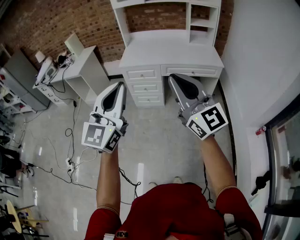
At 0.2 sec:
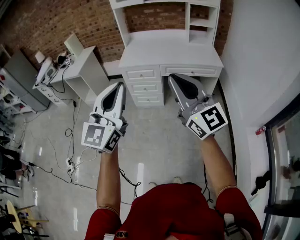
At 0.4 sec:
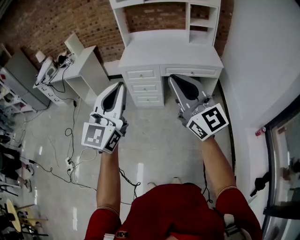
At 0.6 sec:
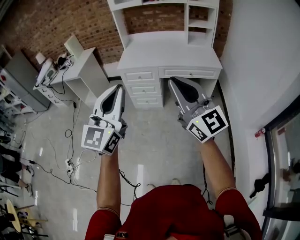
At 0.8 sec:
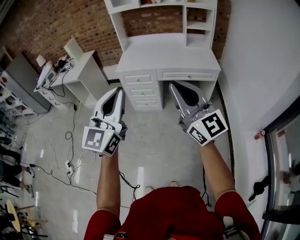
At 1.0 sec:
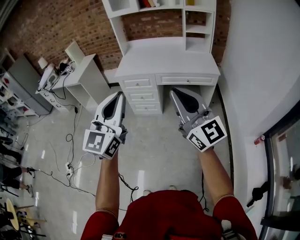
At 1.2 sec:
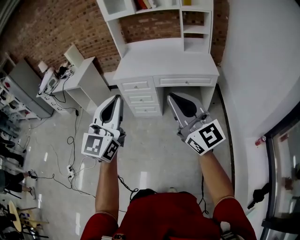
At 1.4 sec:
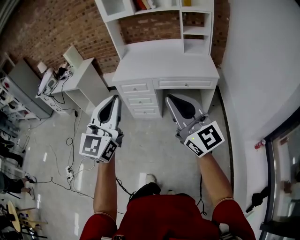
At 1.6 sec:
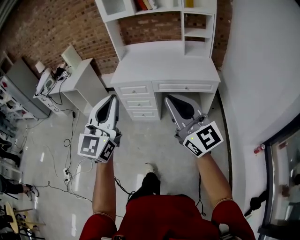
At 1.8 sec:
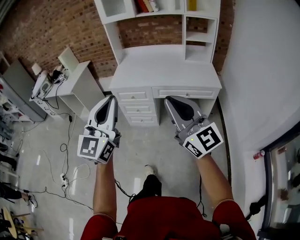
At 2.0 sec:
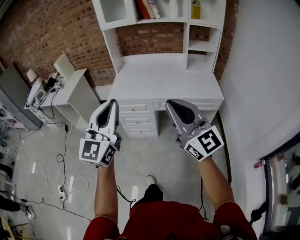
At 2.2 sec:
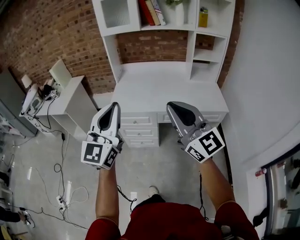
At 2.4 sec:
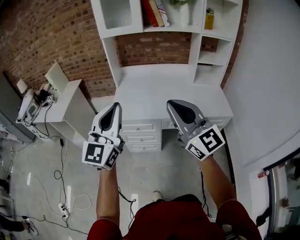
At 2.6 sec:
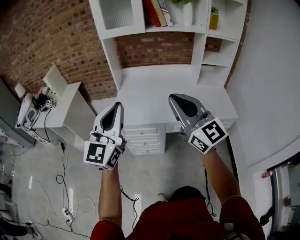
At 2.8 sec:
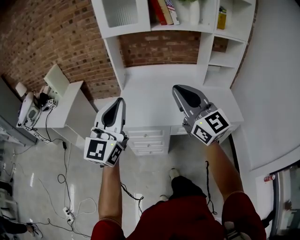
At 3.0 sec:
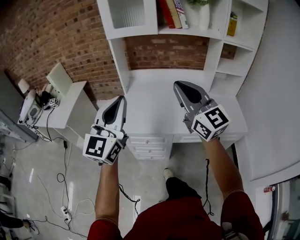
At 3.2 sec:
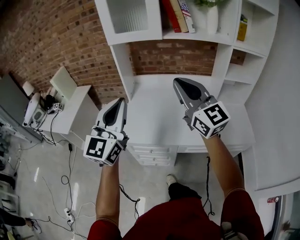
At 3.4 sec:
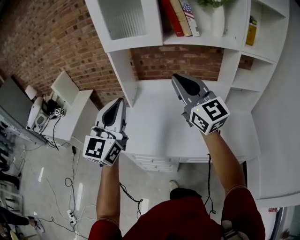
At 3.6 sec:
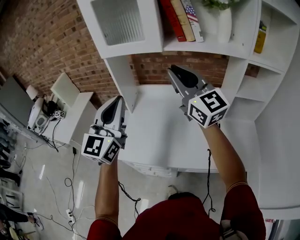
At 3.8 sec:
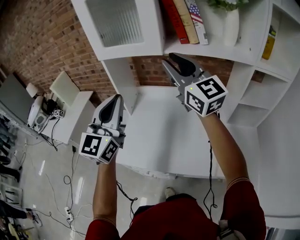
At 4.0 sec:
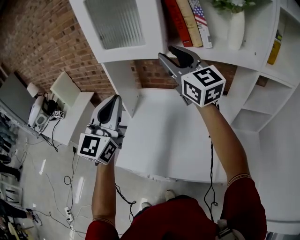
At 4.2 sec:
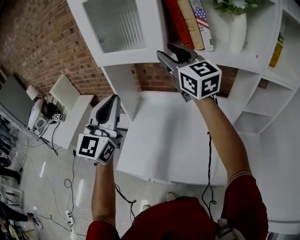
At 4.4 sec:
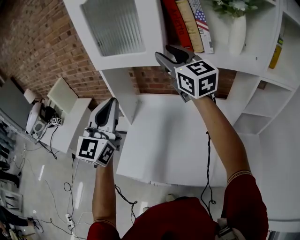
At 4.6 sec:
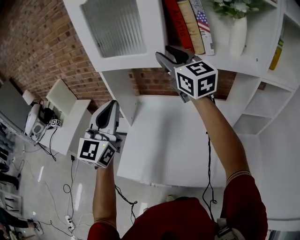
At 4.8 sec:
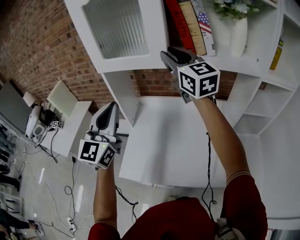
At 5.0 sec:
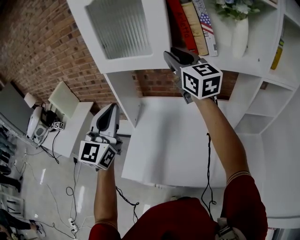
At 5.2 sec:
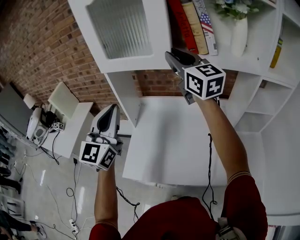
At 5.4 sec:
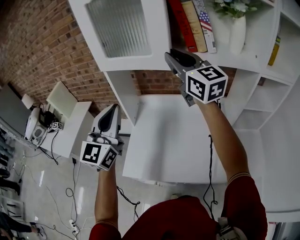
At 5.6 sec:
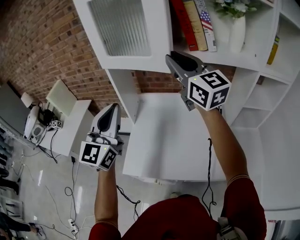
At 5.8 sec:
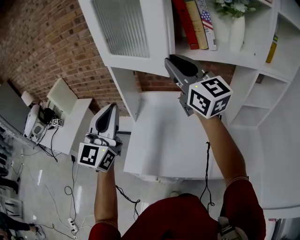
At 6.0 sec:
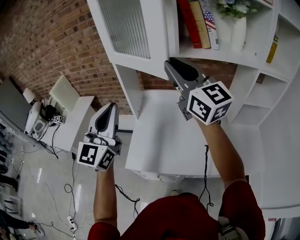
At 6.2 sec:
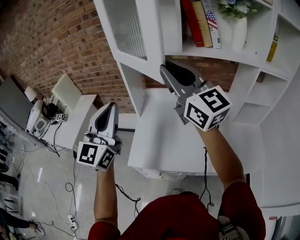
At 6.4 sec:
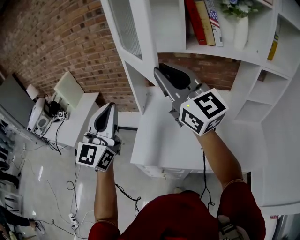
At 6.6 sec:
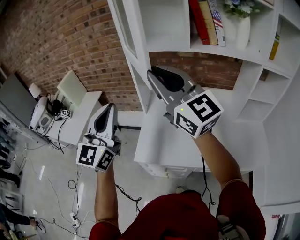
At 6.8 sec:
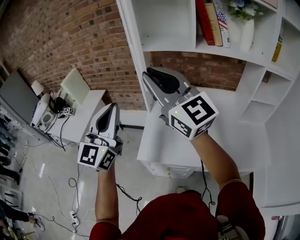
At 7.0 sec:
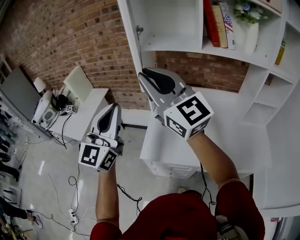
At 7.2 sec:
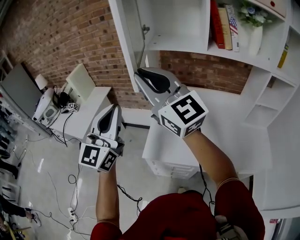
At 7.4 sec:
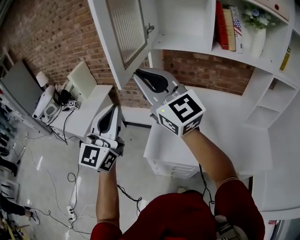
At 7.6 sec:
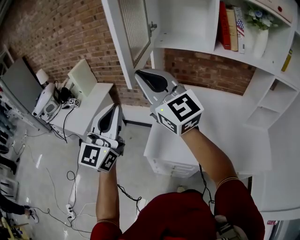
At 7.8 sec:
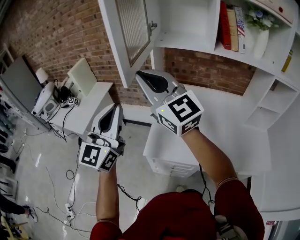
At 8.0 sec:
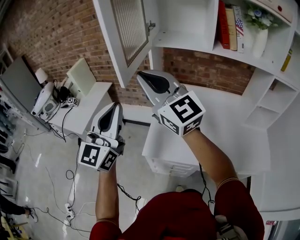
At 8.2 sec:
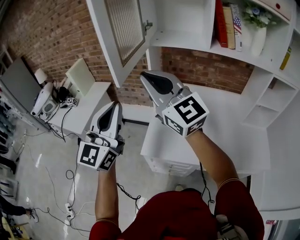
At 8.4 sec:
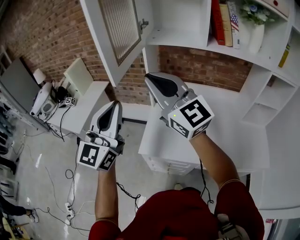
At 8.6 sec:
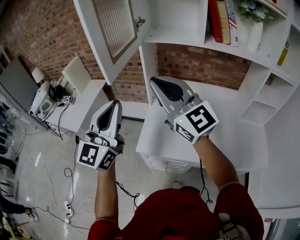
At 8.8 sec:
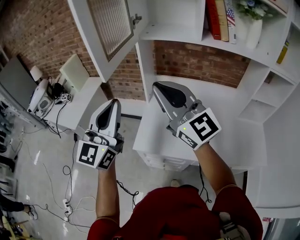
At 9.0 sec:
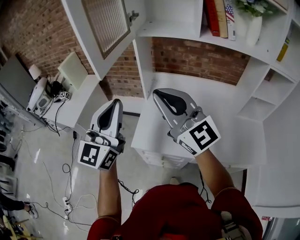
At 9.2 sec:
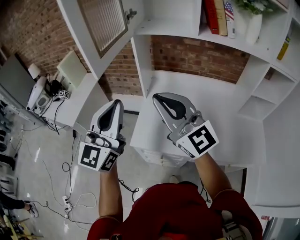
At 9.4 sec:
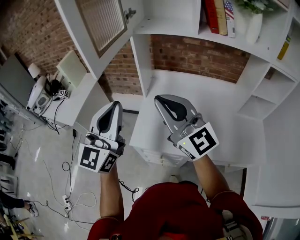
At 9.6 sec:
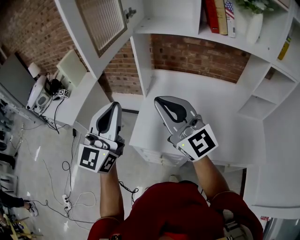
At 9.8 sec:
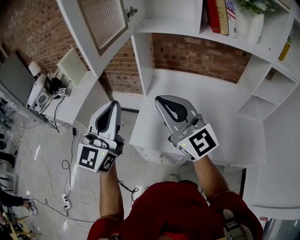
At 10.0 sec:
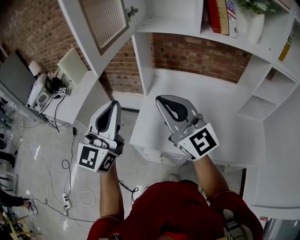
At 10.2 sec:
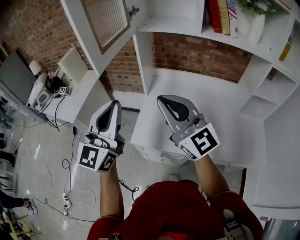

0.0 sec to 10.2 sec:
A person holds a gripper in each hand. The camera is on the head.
0.0 sec to 1.4 sec: Both grippers travel together to the right, approximately 10 cm.
1.4 sec to 3.0 sec: The pair of grippers is taken forward, some 60 cm.
3.0 sec to 4.4 sec: The two grippers go some 35 cm forward. The right gripper opens up.
4.4 sec to 5.8 sec: The left gripper moves to the left, roughly 5 cm; the right gripper travels backward by roughly 10 cm, and closes up.
5.8 sec to 7.2 sec: The right gripper travels to the left and backward by about 25 cm. Meanwhile the left gripper shifts roughly 15 cm to the left and backward.
7.2 sec to 8.8 sec: The right gripper is displaced downward and to the right by roughly 10 cm.
8.8 sec to 10.2 sec: The right gripper heads downward, covering some 5 cm.

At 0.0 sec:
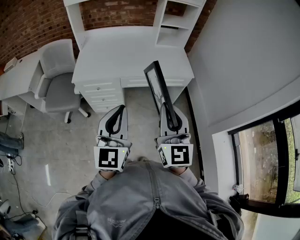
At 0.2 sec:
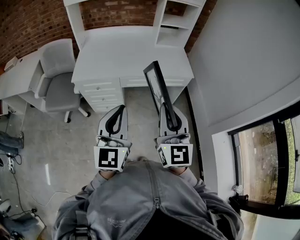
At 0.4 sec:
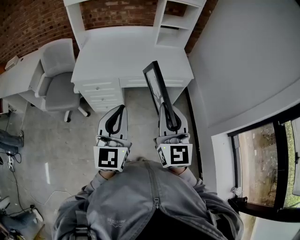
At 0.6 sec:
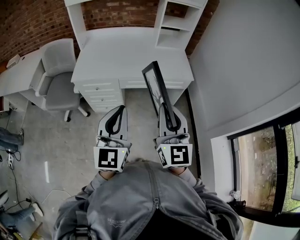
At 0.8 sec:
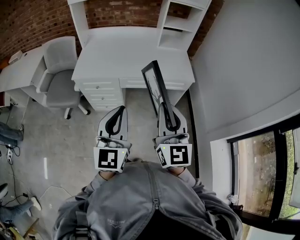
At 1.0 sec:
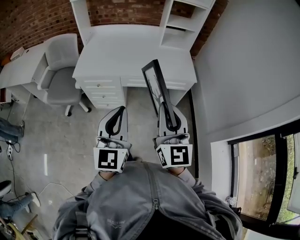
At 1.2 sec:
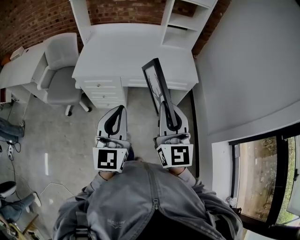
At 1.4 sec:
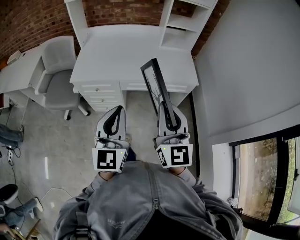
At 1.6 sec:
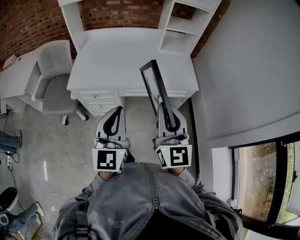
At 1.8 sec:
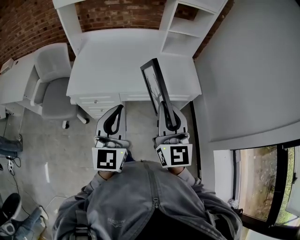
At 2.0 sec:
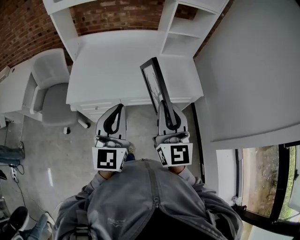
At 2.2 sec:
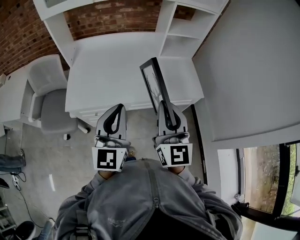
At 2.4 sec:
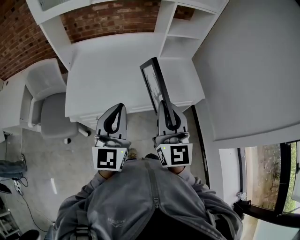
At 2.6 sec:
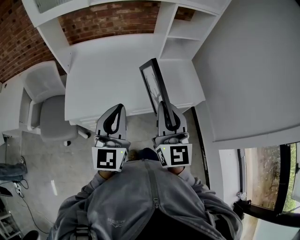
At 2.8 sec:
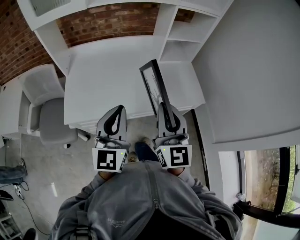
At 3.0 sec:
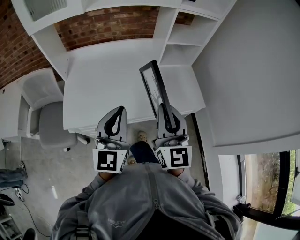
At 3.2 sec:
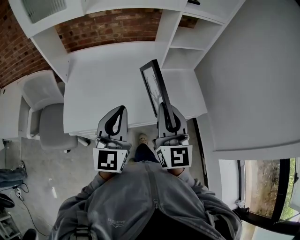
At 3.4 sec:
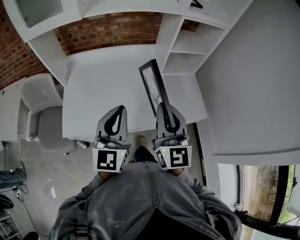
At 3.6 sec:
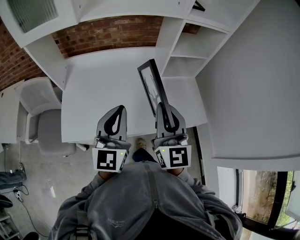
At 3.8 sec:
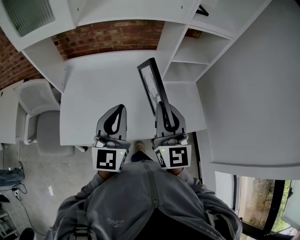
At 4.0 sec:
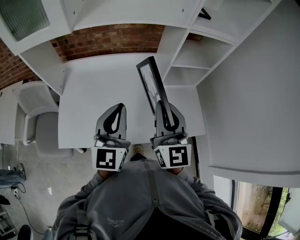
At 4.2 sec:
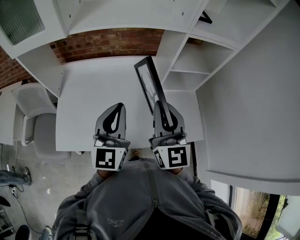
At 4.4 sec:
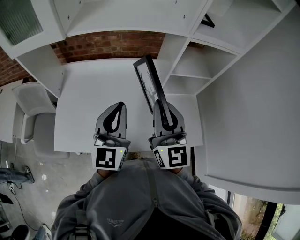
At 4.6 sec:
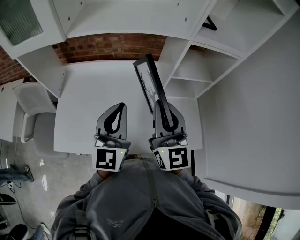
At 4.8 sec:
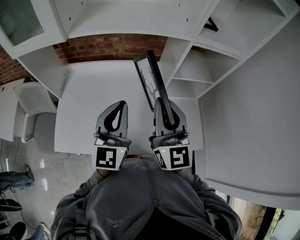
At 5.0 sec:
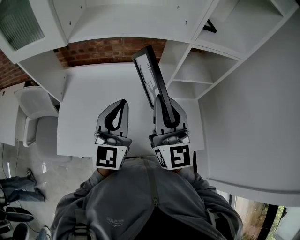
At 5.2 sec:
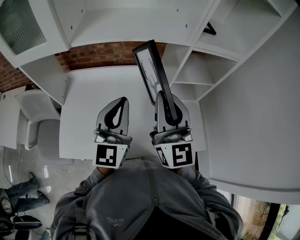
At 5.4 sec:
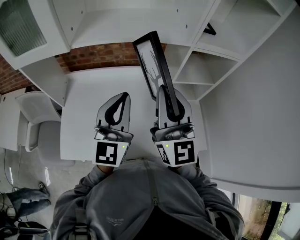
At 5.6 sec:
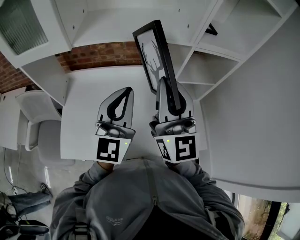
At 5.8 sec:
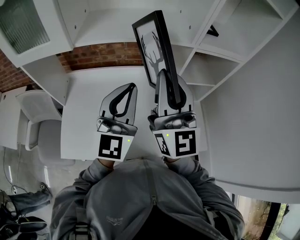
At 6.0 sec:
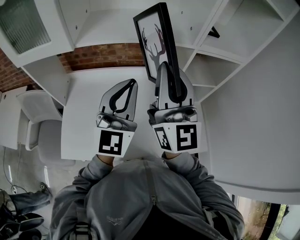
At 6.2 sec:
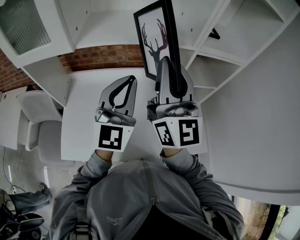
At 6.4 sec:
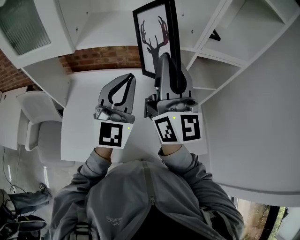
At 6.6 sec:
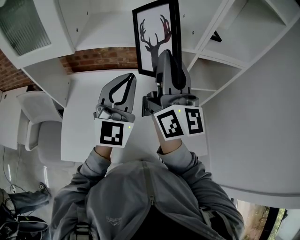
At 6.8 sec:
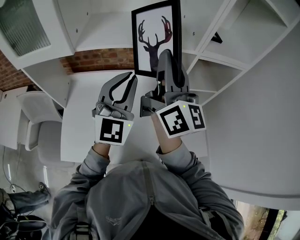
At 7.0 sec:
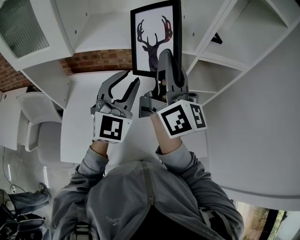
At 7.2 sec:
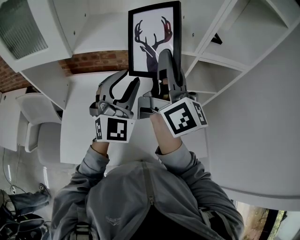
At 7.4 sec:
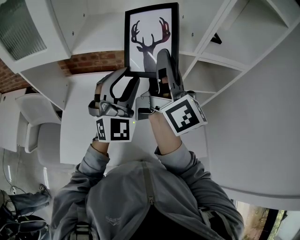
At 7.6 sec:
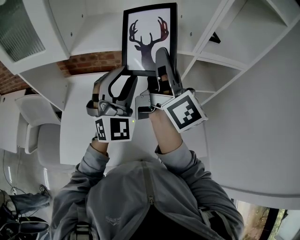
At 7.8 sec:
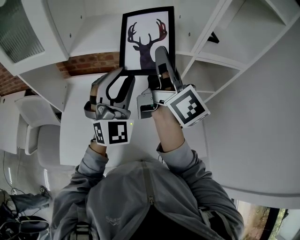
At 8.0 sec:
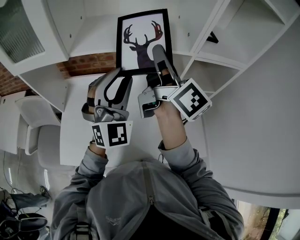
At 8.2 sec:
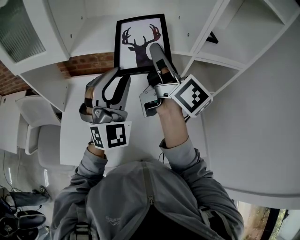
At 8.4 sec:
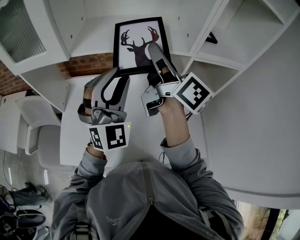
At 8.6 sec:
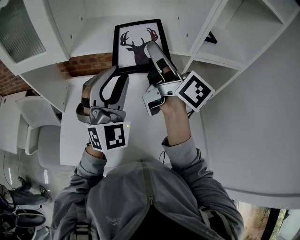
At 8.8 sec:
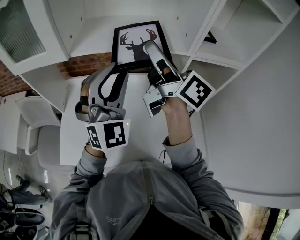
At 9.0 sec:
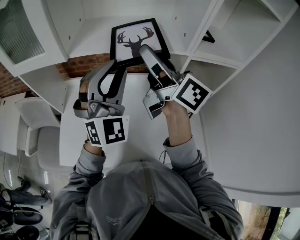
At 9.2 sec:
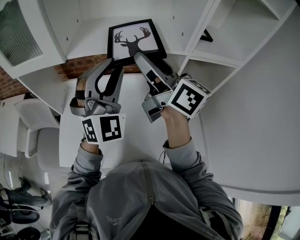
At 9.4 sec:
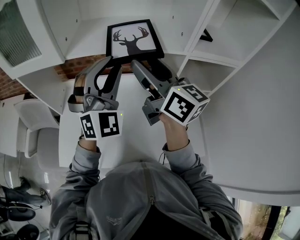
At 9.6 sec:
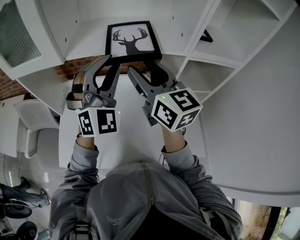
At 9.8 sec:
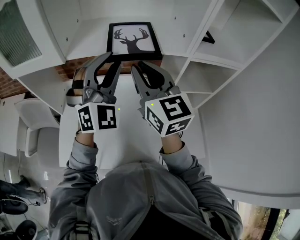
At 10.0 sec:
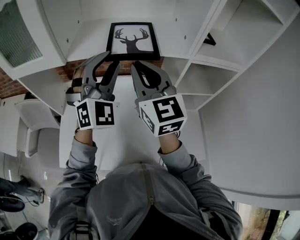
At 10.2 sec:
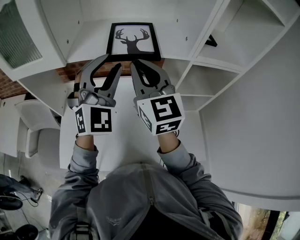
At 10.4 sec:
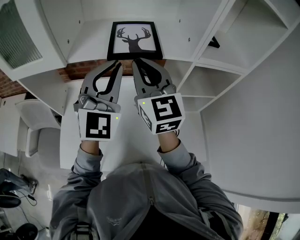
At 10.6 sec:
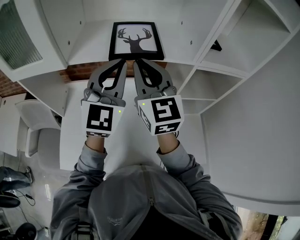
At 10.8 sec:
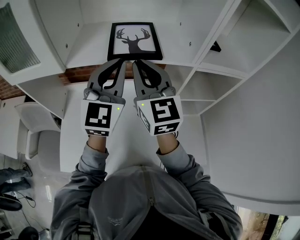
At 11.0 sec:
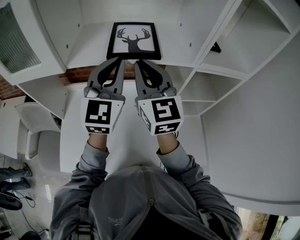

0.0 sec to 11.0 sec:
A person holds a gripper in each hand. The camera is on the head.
0.0 sec to 1.6 sec: Both grippers travel together forward, some 10 cm.
1.6 sec to 3.2 sec: The grippers both shift forward by approximately 25 cm.
3.2 sec to 4.8 sec: Both grippers move forward, approximately 20 cm.
4.8 sec to 6.2 sec: Both grippers travel together upward and forward, roughly 10 cm.
6.2 sec to 7.8 sec: The left gripper moves some 5 cm, rotates roughly 30 degrees, and opens. The right gripper is displaced forward by approximately 10 cm, and rolls clockwise, seen from behind, by about 40 degrees.
7.8 sec to 9.4 sec: The right gripper swivels some 30 degrees, and opens up.
9.4 sec to 11.0 sec: Both grippers move forward, approximately 5 cm. The left gripper changes its angle by some 40 degrees, and closes its fingers, while the right gripper turns by about 40 degrees, and closes.

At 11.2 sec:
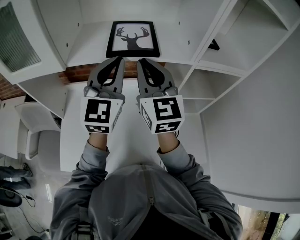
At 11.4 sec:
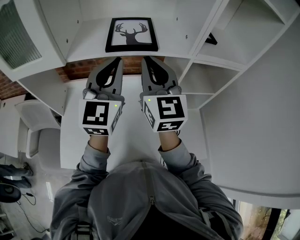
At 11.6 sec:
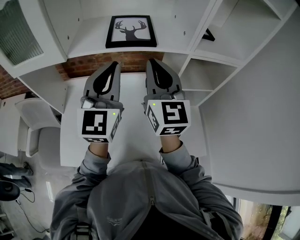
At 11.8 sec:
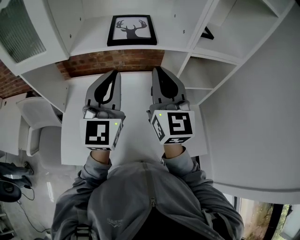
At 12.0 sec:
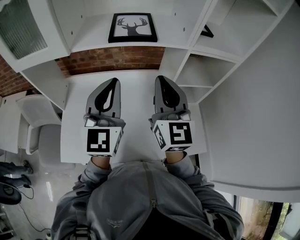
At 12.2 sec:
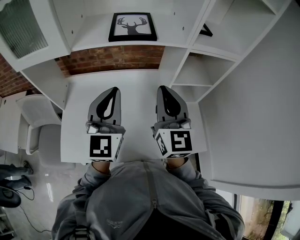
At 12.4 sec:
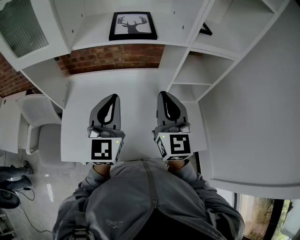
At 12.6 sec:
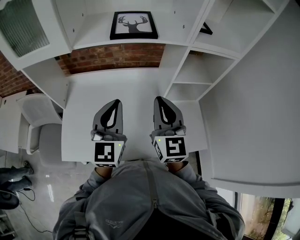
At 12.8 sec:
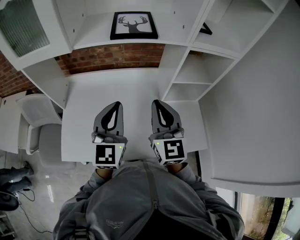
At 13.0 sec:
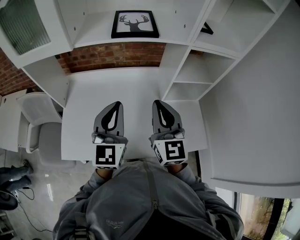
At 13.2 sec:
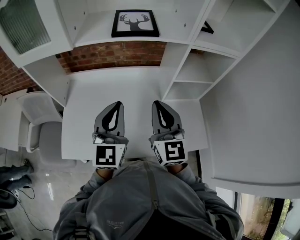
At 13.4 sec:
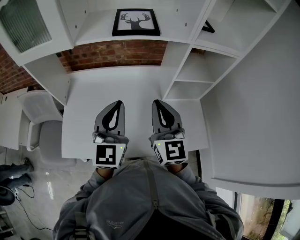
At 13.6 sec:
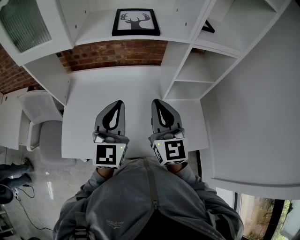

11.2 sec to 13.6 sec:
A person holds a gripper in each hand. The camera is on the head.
11.2 sec to 12.4 sec: The left gripper shifts approximately 15 cm backward and downward. Meanwhile the right gripper is displaced backward, downward and to the right by about 15 cm.
12.4 sec to 13.6 sec: The grippers stay close to where they were, moving slightly.
